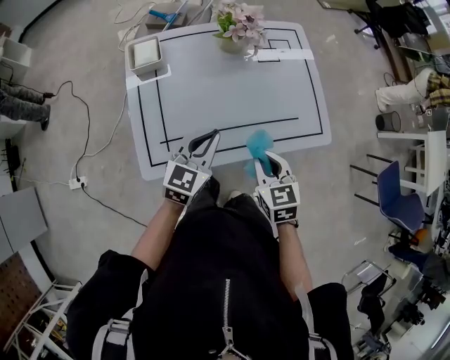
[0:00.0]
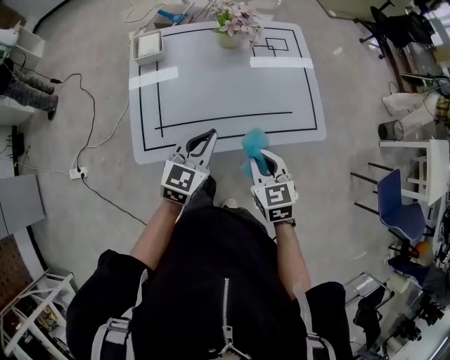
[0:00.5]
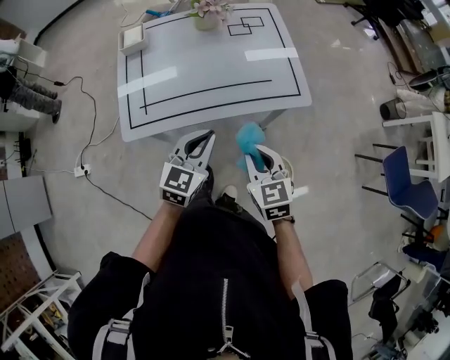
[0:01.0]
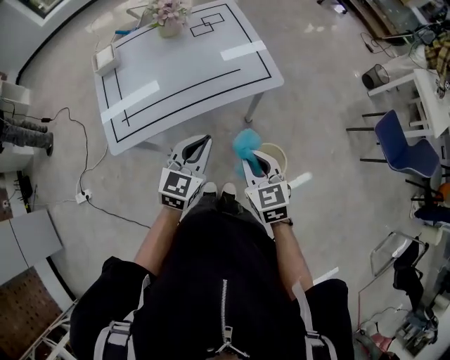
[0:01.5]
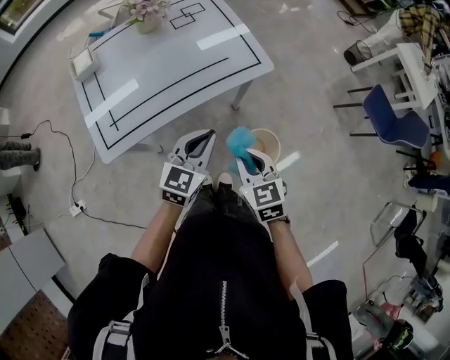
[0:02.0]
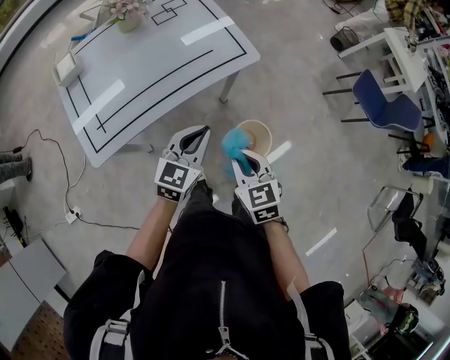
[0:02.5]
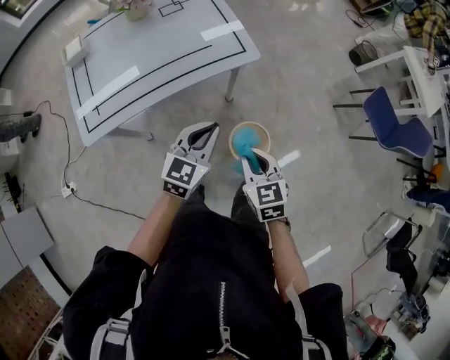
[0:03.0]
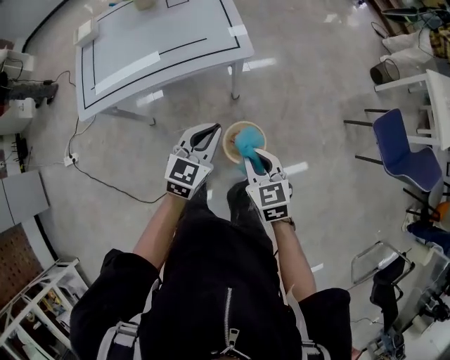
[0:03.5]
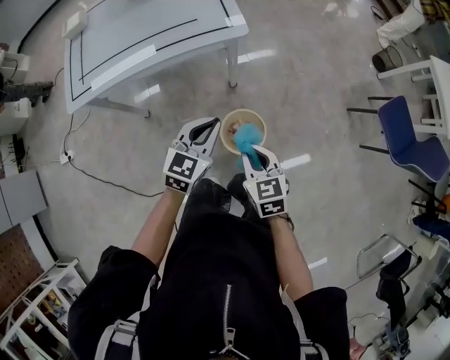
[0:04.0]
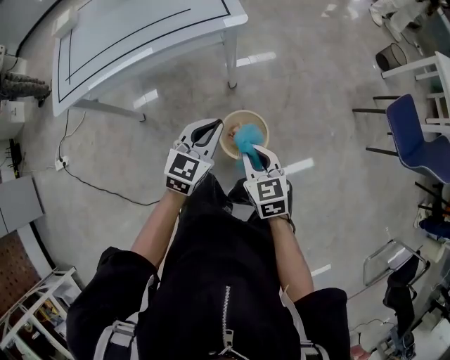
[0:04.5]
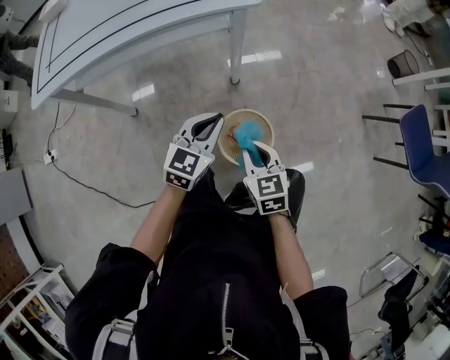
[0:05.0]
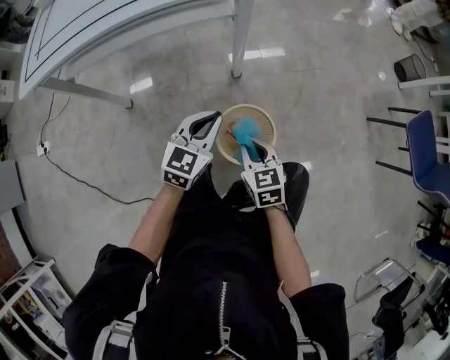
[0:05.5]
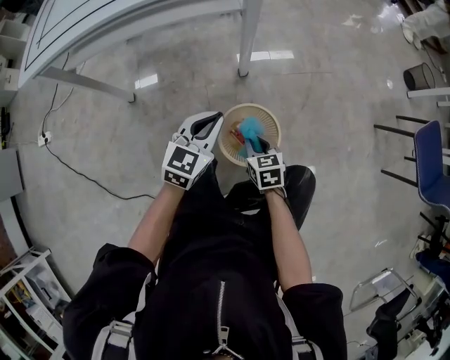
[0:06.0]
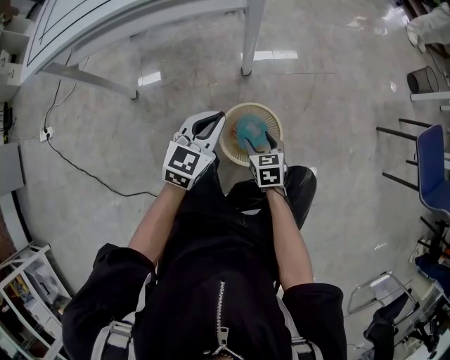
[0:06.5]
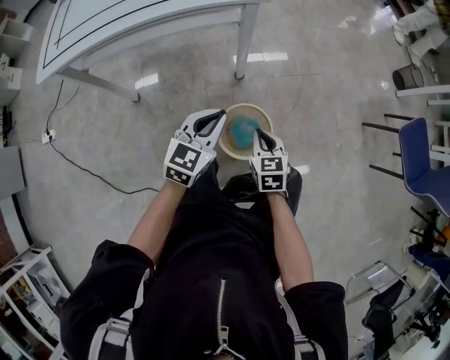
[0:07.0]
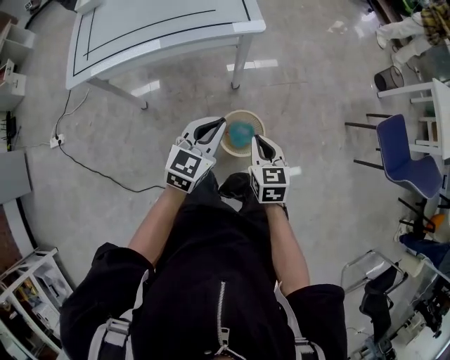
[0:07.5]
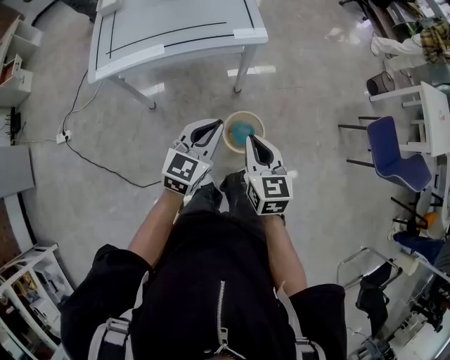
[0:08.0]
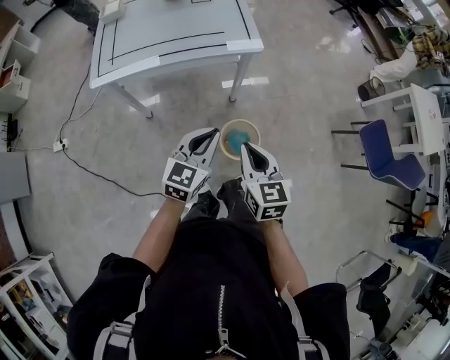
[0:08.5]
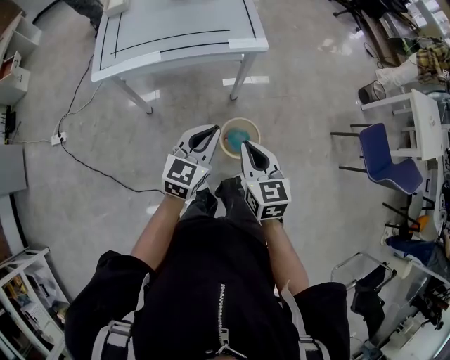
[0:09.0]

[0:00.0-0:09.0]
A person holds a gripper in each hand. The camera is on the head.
0:00.0 to 0:02.0: The right gripper travels backward and to the right by about 25 cm. The left gripper goes about 25 cm to the right and backward.
0:02.0 to 0:04.5: Both grippers move to the right and downward, approximately 30 cm.
0:04.5 to 0:07.0: The right gripper travels downward by about 15 cm, and opens, then closes once more. The left gripper shifts approximately 10 cm downward.
0:07.0 to 0:09.0: The two grippers go approximately 35 cm upward.

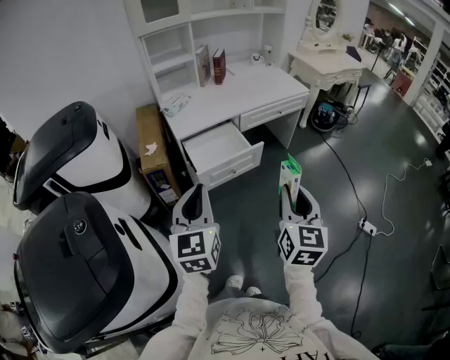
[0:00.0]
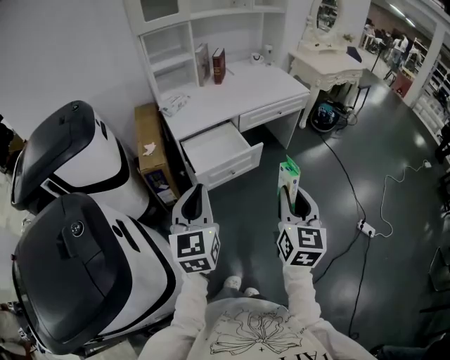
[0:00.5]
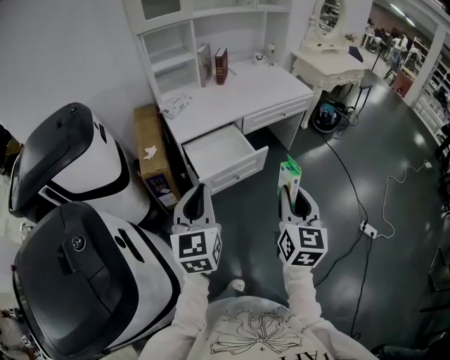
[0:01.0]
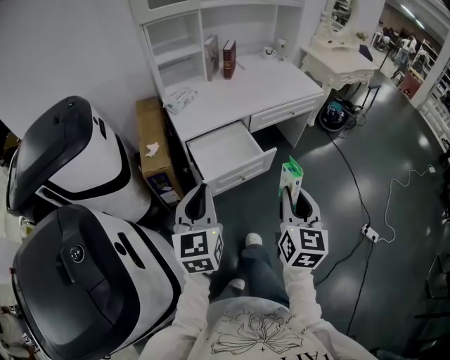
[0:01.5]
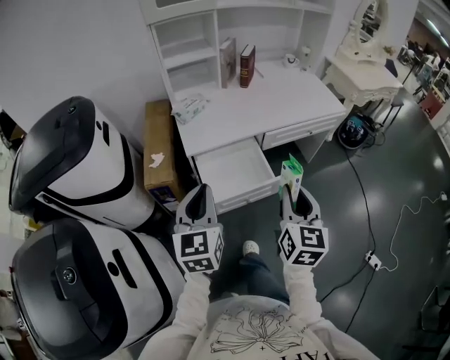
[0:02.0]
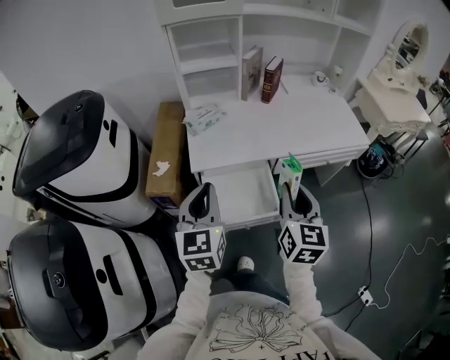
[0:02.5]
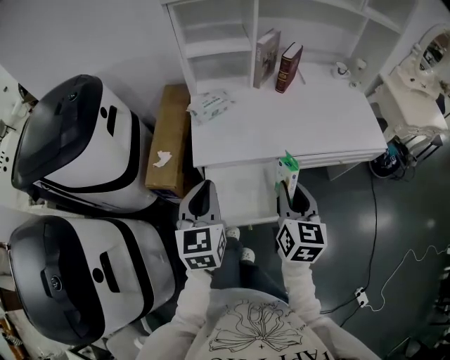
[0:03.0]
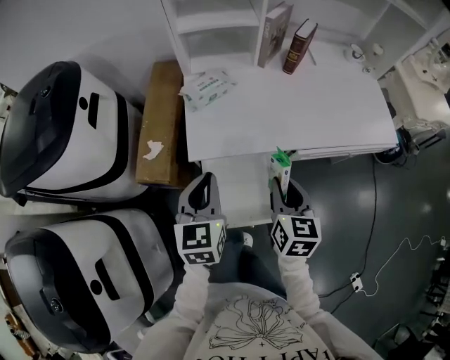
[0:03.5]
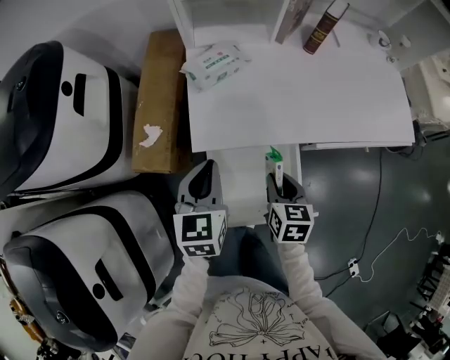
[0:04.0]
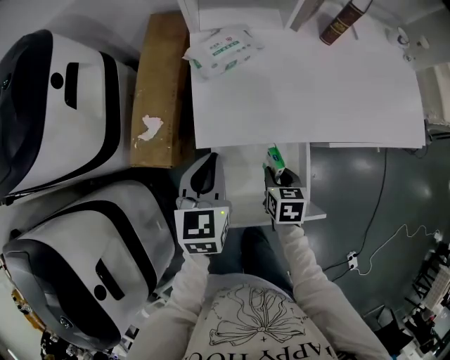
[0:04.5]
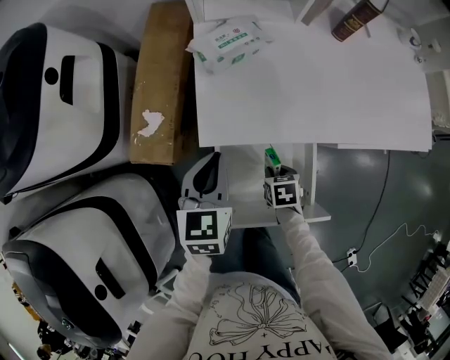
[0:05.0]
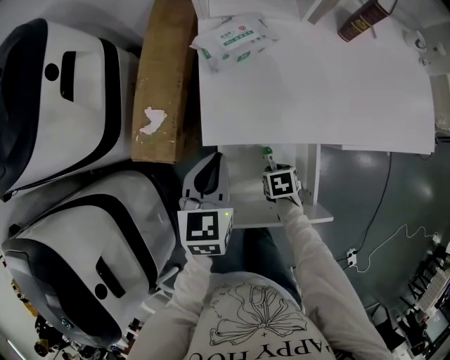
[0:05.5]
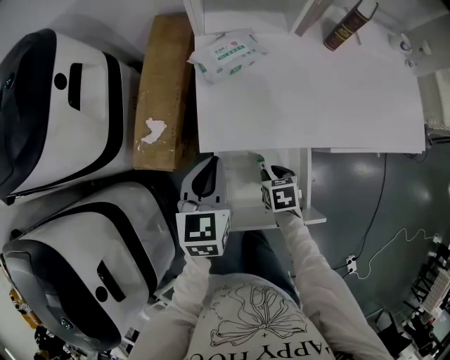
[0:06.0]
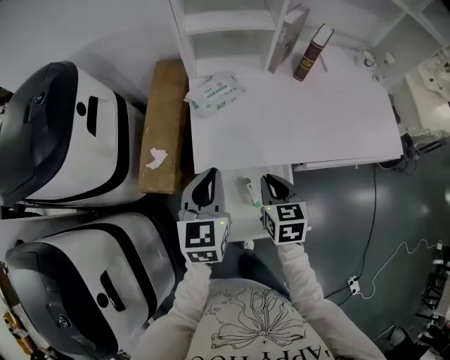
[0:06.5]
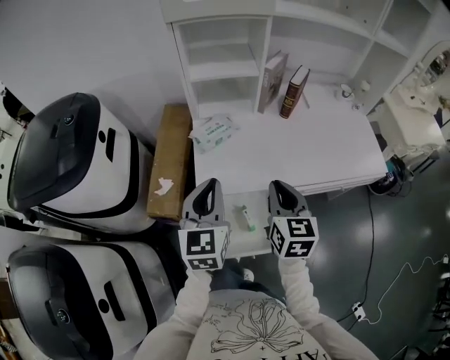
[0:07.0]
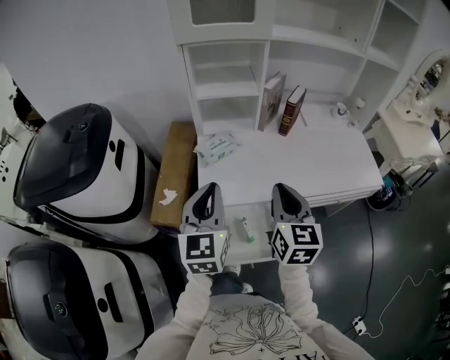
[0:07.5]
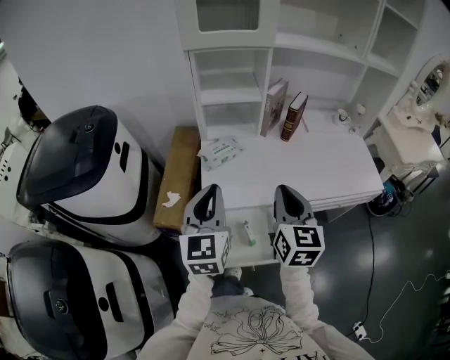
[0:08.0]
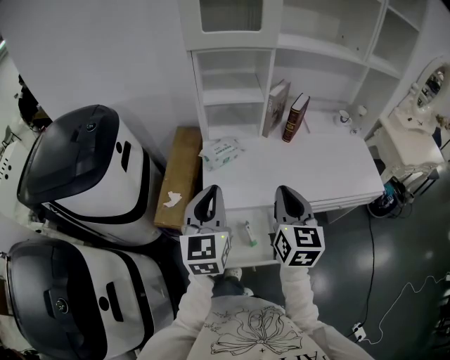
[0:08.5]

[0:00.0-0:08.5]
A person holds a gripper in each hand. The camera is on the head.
0:00.0 to 0:02.0: The two grippers go approximately 25 cm forward.
0:02.0 to 0:04.0: Both grippers travel together forward and downward, roughly 35 cm. The left gripper changes its angle by roughly 20 degrees, while the right gripper angles its fingers downward, by some 30 degrees.
0:04.0 to 0:06.5: The right gripper travels downward and back again, approximately 20 cm each way; the left gripper shifts approximately 5 cm upward.
0:06.5 to 0:08.5: Both grippers move upward, roughly 20 cm. The right gripper swivels approximately 30 degrees.

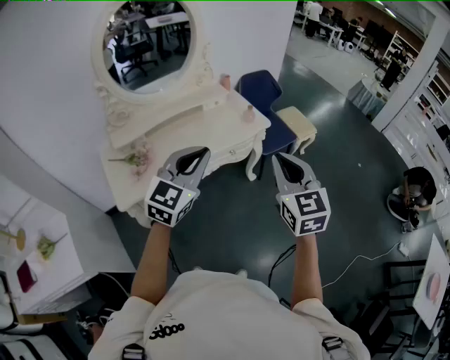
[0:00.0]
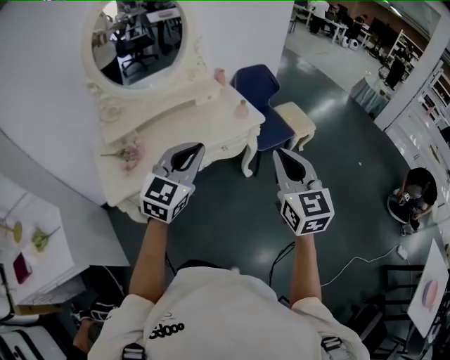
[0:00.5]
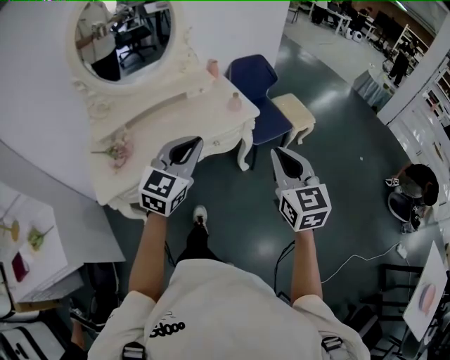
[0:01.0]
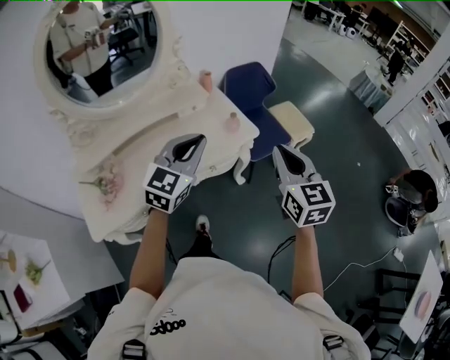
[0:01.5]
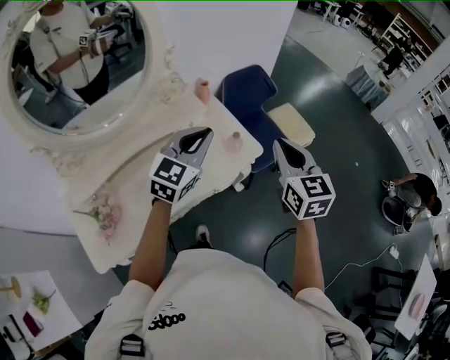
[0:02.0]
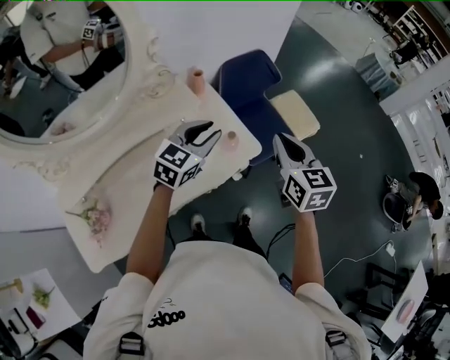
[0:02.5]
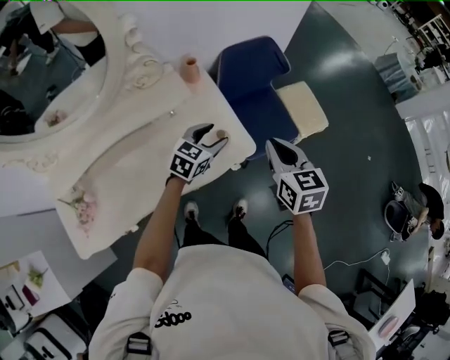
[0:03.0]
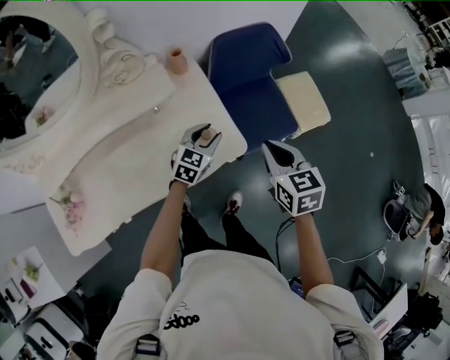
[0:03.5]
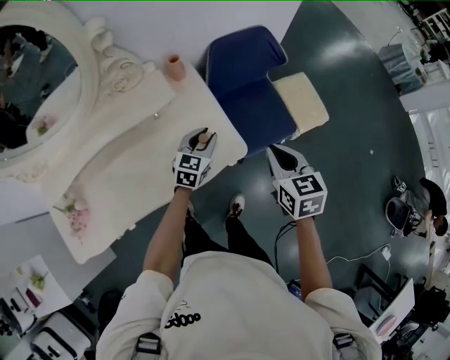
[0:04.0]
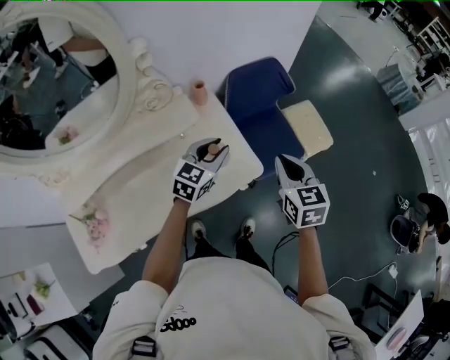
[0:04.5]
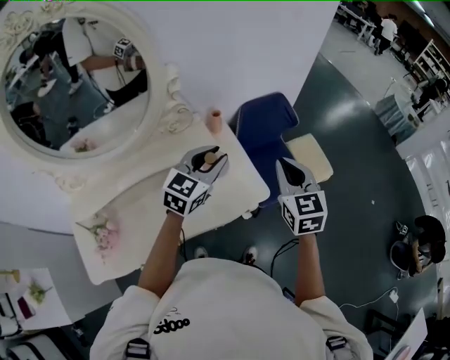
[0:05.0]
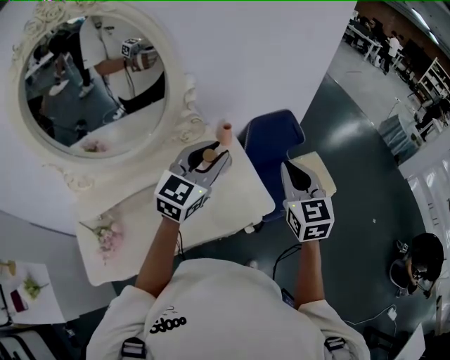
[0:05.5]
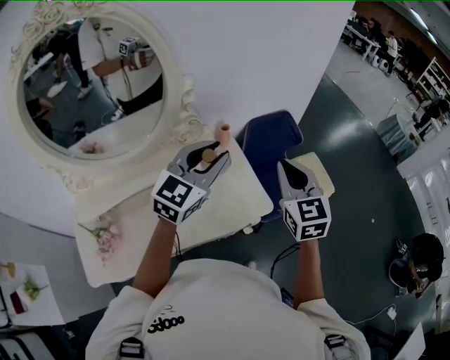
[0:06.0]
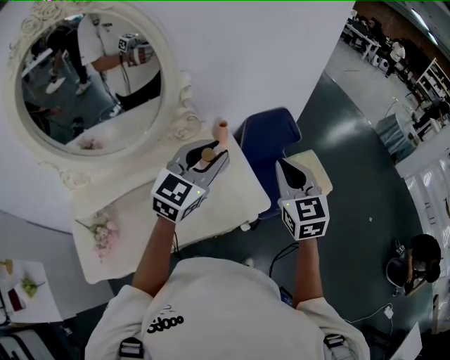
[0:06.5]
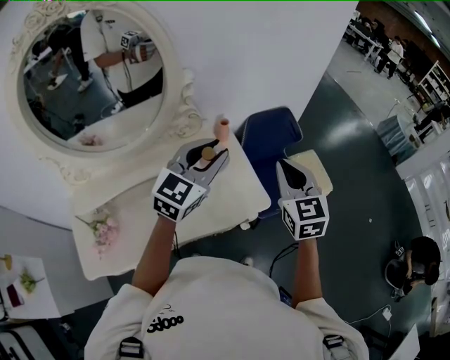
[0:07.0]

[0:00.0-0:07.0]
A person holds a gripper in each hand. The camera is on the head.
0:00.0 to 0:02.0: Both grippers travel together forward, some 40 cm.
0:02.0 to 0:03.5: The left gripper shifts approximately 35 cm downward and forward, changes its angle by some 30 degrees, and opens its fingers. Meanwhile the right gripper shifts about 25 cm downward, forward and to the right, and rotates about 30 degrees.
0:03.5 to 0:05.0: The left gripper moves upward, some 25 cm, while the right gripper heads upward and to the left, covering about 15 cm, and changes its angle by approximately 20 degrees.
0:05.0 to 0:07.0: The left gripper goes approximately 10 cm upward.

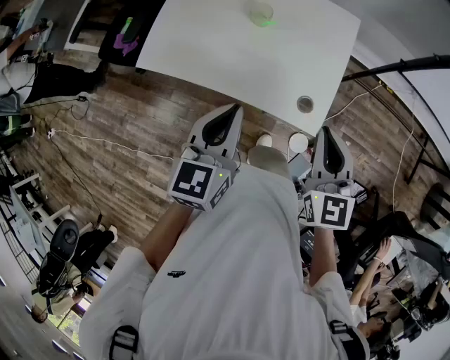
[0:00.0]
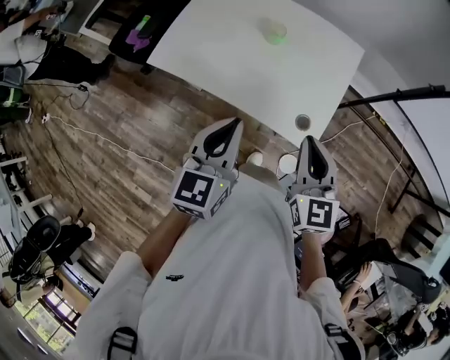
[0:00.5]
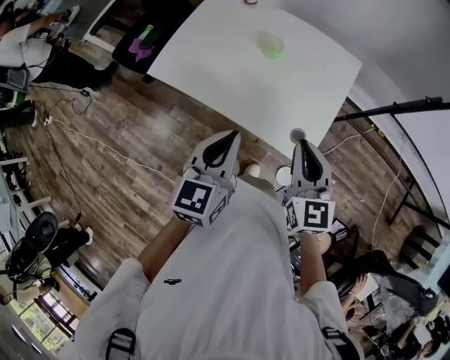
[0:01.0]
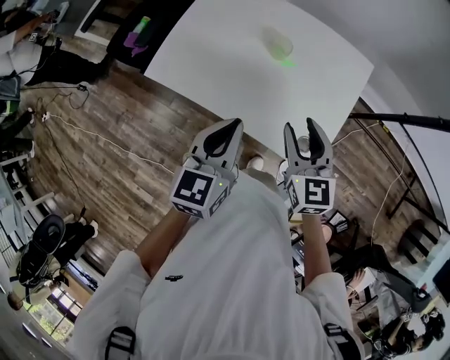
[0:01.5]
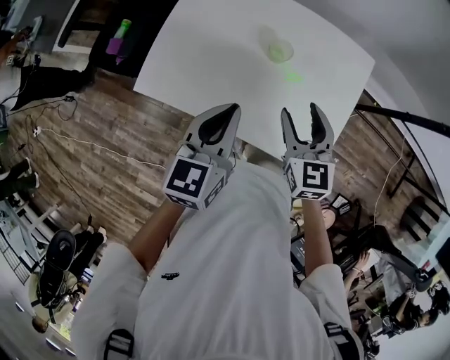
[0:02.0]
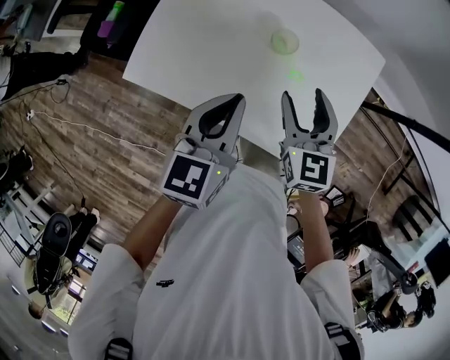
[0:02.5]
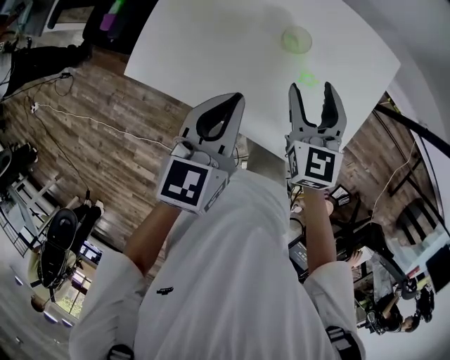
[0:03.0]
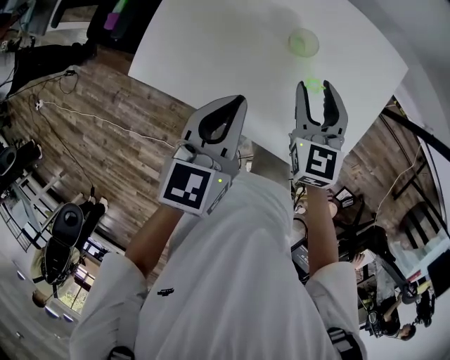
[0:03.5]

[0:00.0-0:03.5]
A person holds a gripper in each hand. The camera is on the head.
0:00.0 to 0:02.0: Both grippers travel together forward and to the left, roughly 20 cm. The right gripper opens its fingers.
0:02.0 to 0:03.5: The left gripper heads downward, covering some 5 cm. Meanwhile the right gripper shifts approximately 10 cm forward and downward.
